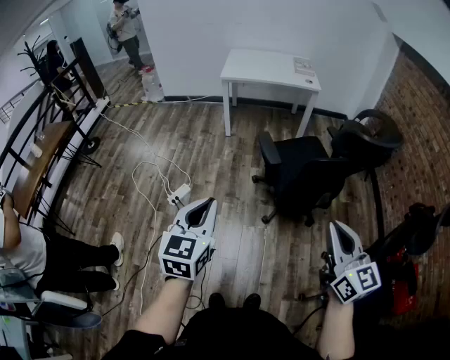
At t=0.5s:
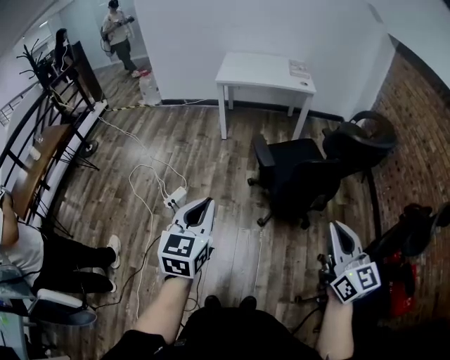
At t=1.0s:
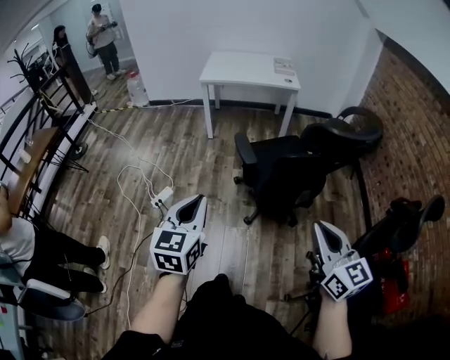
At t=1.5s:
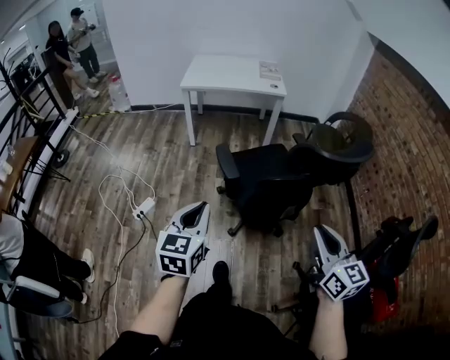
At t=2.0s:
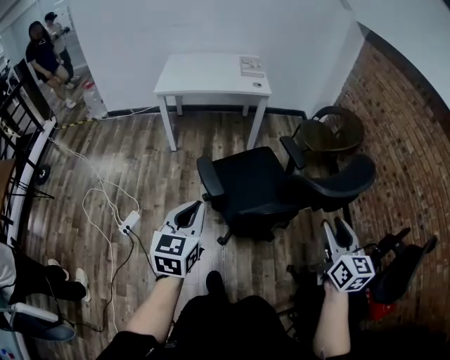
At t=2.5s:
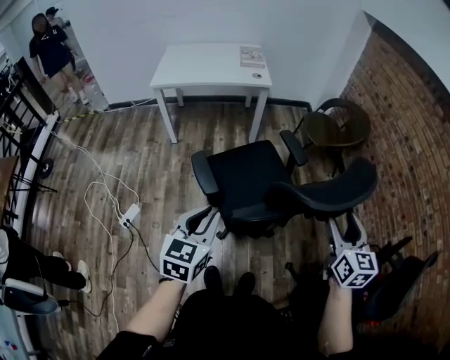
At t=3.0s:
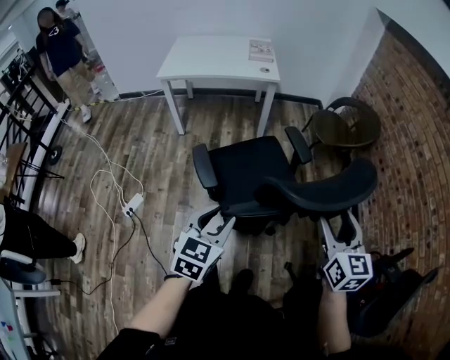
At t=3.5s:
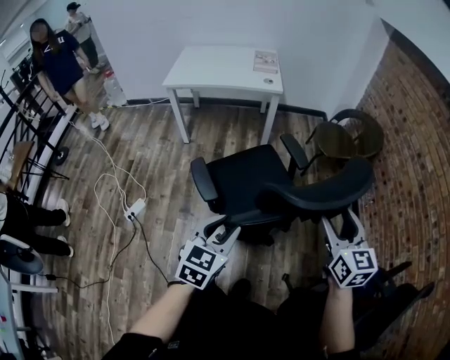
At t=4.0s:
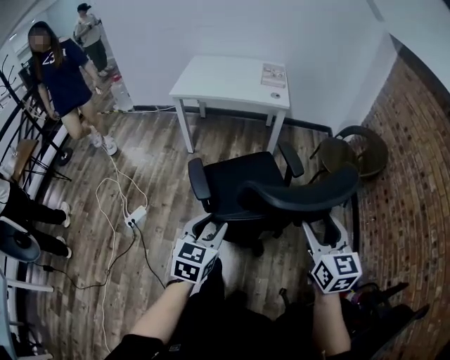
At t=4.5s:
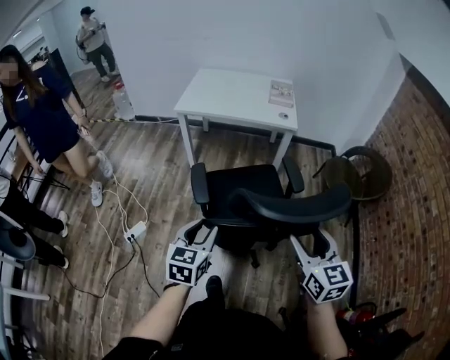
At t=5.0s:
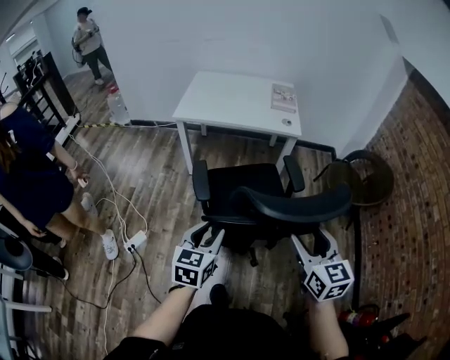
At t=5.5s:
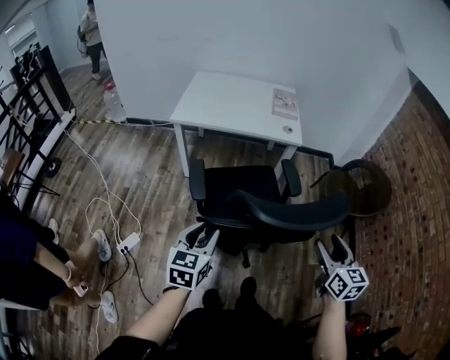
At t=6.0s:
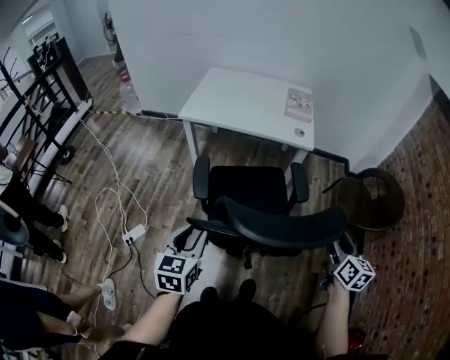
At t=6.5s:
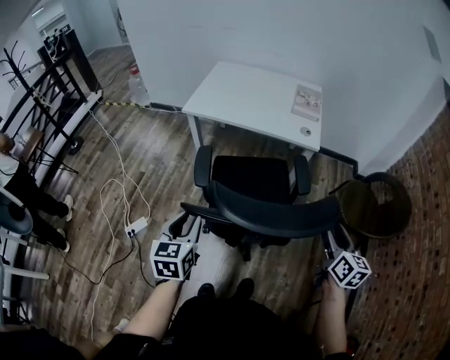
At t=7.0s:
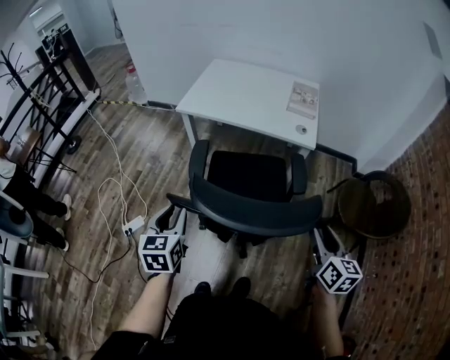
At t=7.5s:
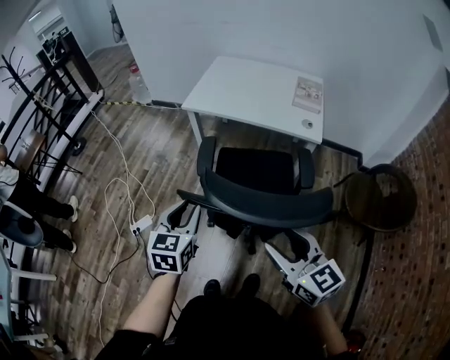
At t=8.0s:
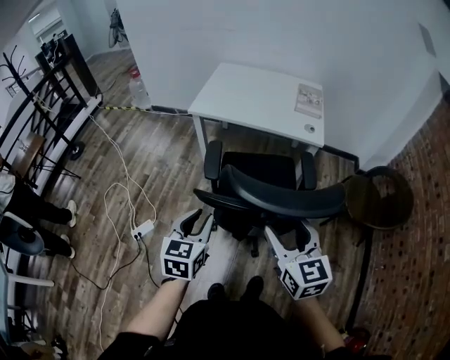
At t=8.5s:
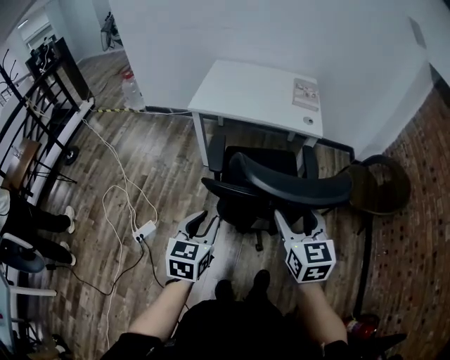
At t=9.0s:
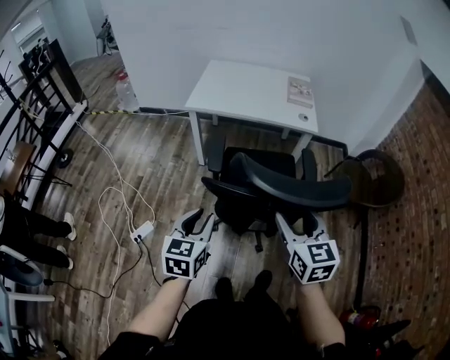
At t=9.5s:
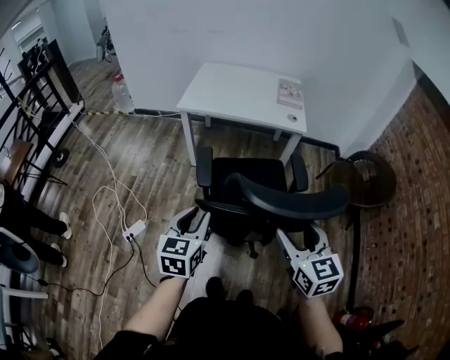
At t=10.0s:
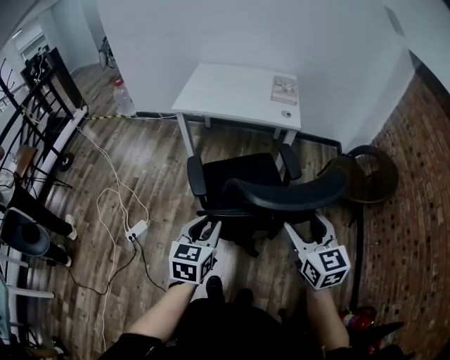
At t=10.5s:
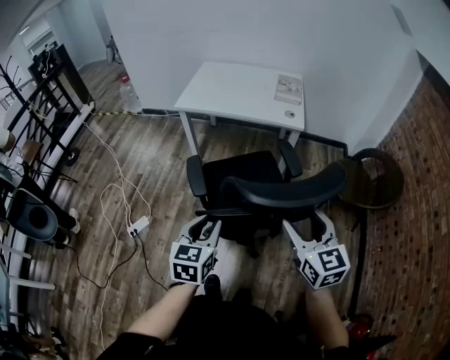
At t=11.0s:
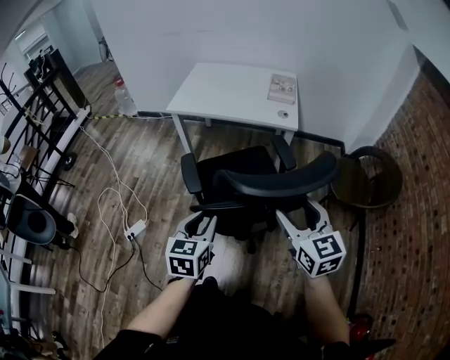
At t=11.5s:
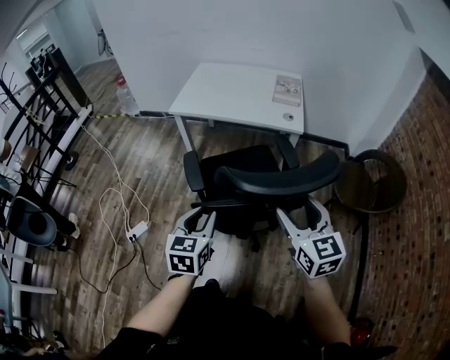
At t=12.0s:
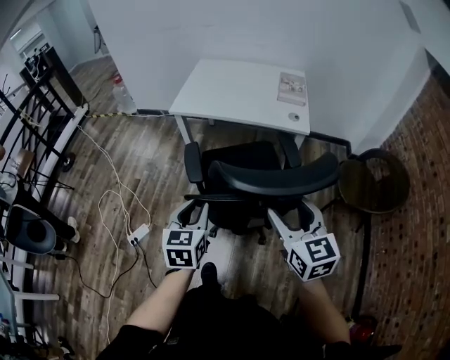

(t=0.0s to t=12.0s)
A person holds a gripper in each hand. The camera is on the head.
t=0.0s - t=2.0s: The left gripper goes some 30 cm forward and to the right; the right gripper travels to the right and forward by approximately 30 cm, turns by roughly 20 degrees, and opens up.
t=2.0s - t=4.0s: The left gripper travels to the right and forward by about 15 cm, and opens its fingers. Meanwhile the right gripper moves forward, roughly 15 cm.
t=4.0s - t=6.0s: The left gripper moves forward and to the left, approximately 25 cm. Meanwhile the right gripper moves forward, roughly 30 cm, and changes its angle by about 20 degrees.
t=6.0s - t=8.0s: The right gripper goes roughly 25 cm to the left, and rotates some 30 degrees.
t=8.0s - t=10.0s: The grippers both shift backward and to the right by roughly 15 cm.
t=10.0s - t=12.0s: The two grippers go about 15 cm forward.

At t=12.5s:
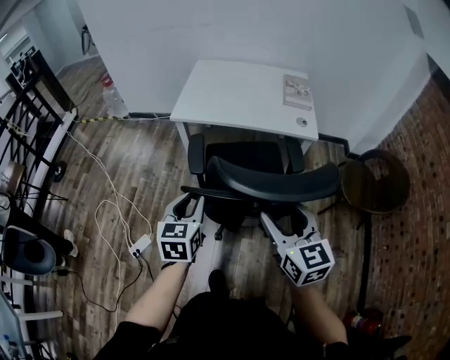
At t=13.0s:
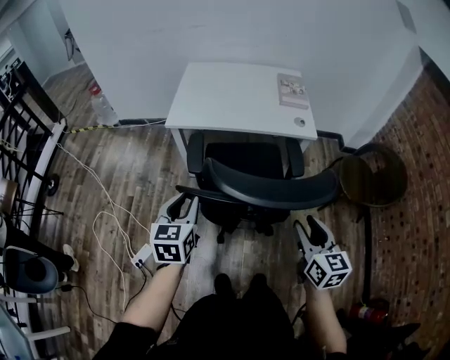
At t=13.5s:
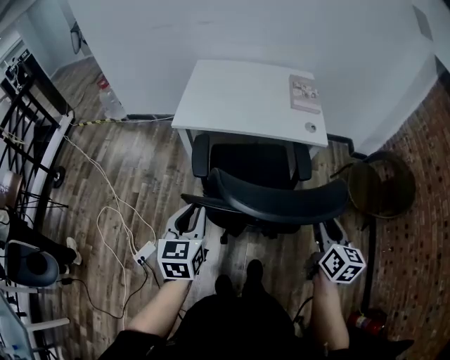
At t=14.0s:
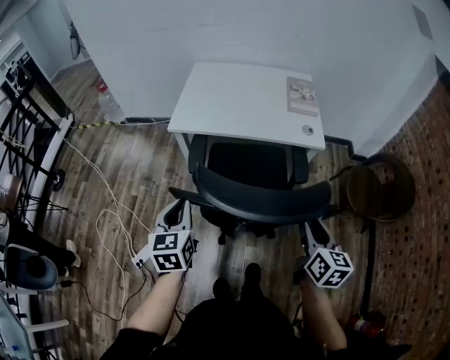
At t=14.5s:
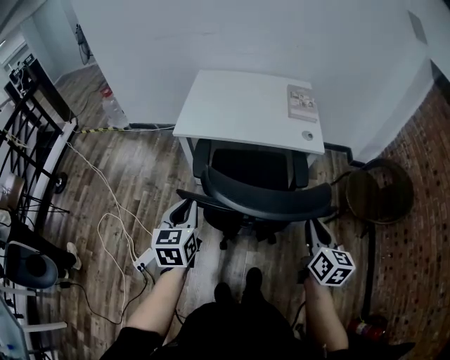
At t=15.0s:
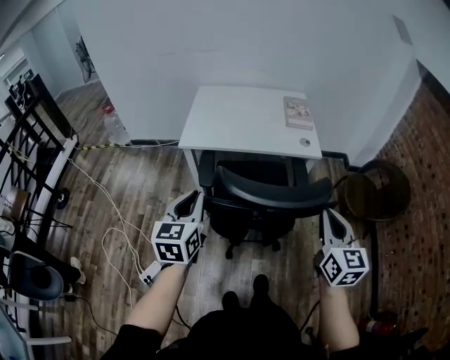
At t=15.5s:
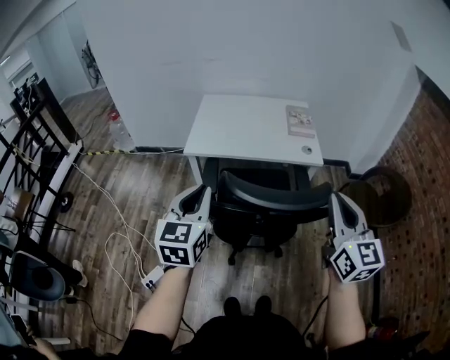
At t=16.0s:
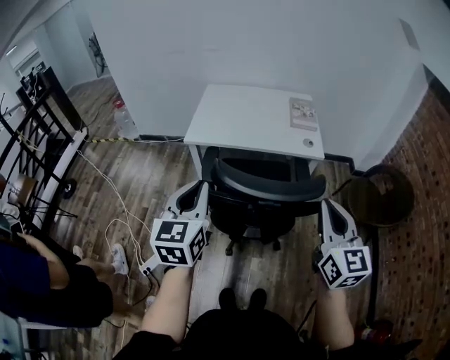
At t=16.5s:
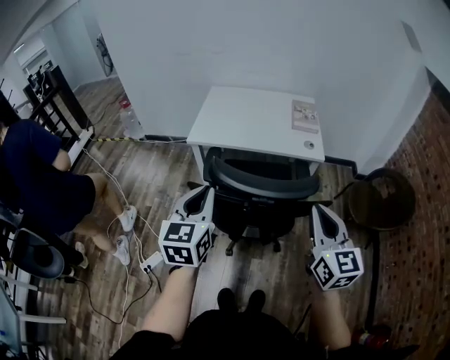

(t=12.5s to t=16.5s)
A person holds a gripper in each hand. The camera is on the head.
t=12.5s - t=14.5s: The left gripper travels forward by about 5 cm; the right gripper travels to the right, downward and forward by about 15 cm, changes its angle by about 30 degrees, and closes its fingers.
t=14.5s - t=16.5s: The right gripper heads upward and backward, covering roughly 15 cm, and changes its angle by about 30 degrees. Meanwhile the left gripper is displaced upward, backward and to the right by some 15 cm.

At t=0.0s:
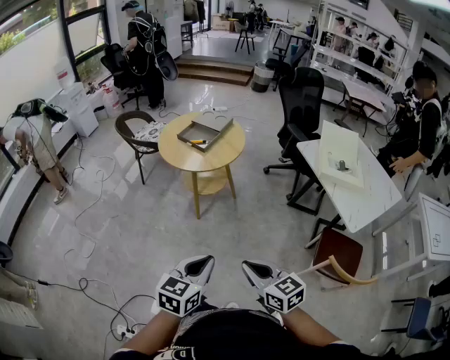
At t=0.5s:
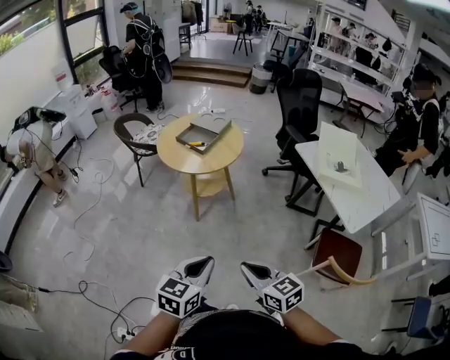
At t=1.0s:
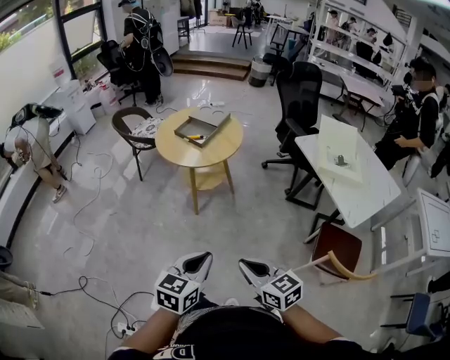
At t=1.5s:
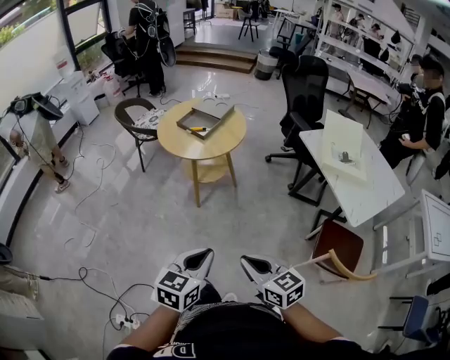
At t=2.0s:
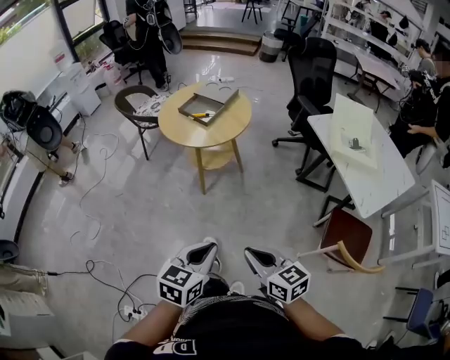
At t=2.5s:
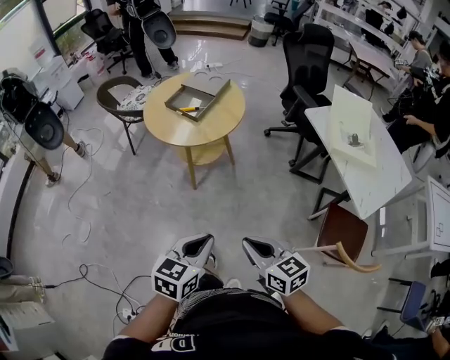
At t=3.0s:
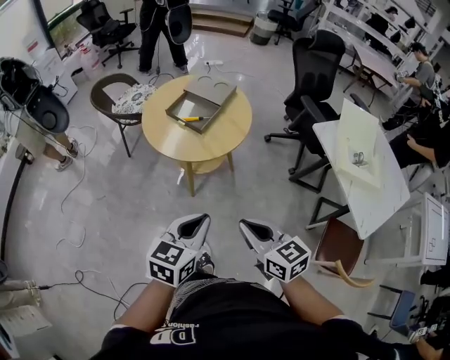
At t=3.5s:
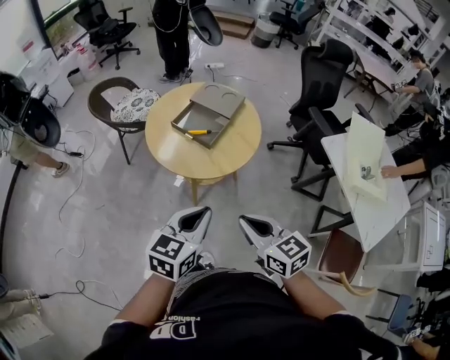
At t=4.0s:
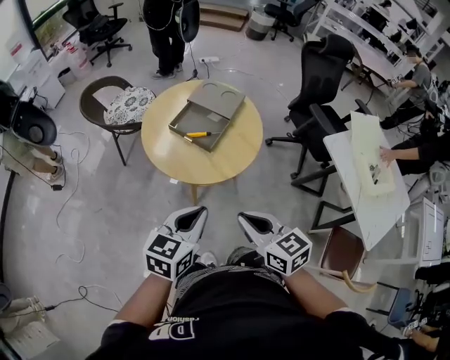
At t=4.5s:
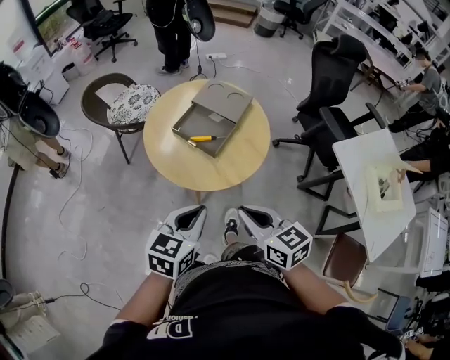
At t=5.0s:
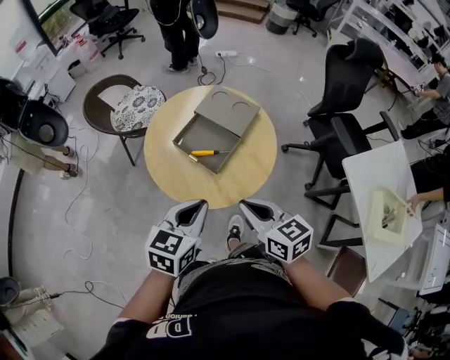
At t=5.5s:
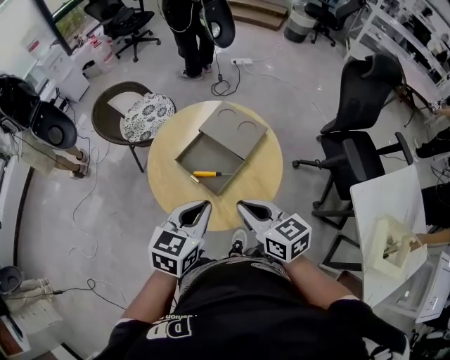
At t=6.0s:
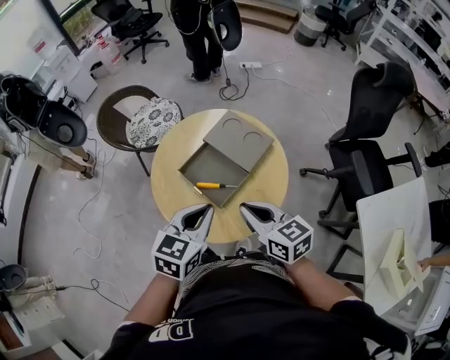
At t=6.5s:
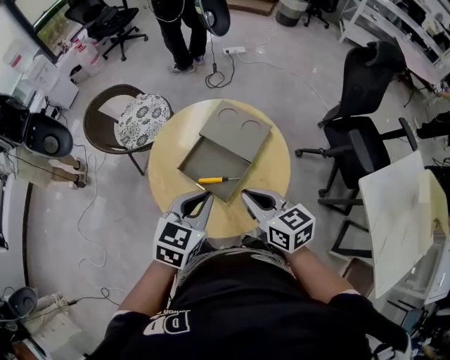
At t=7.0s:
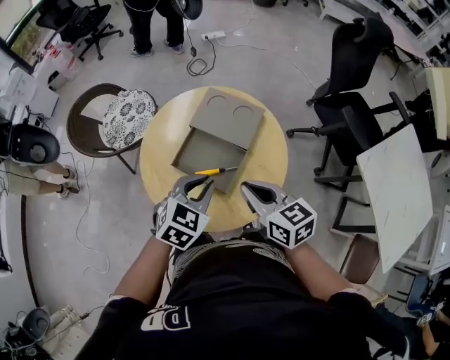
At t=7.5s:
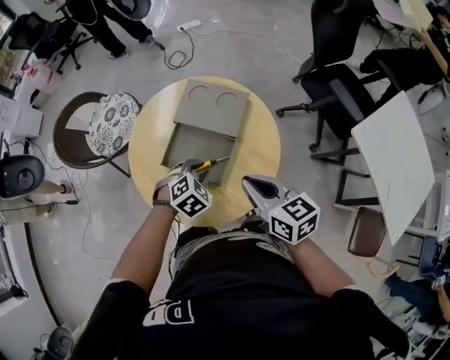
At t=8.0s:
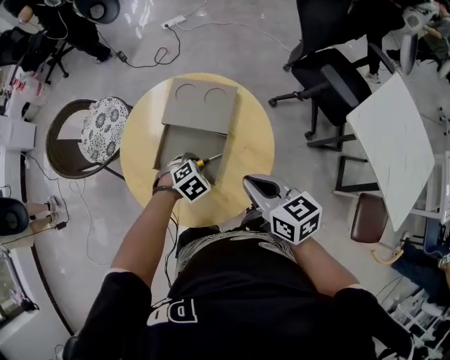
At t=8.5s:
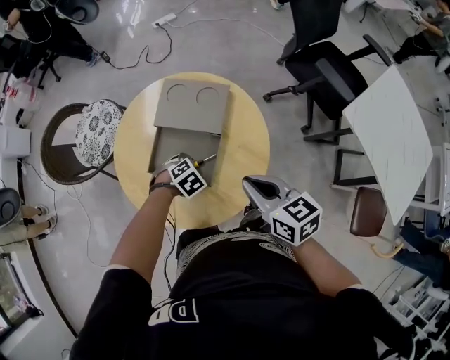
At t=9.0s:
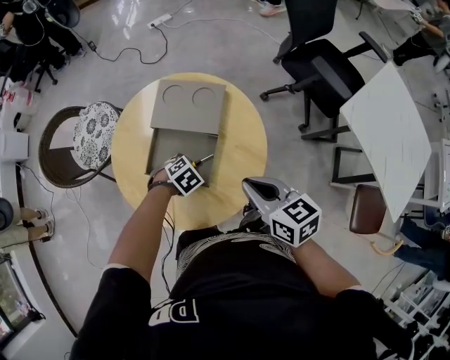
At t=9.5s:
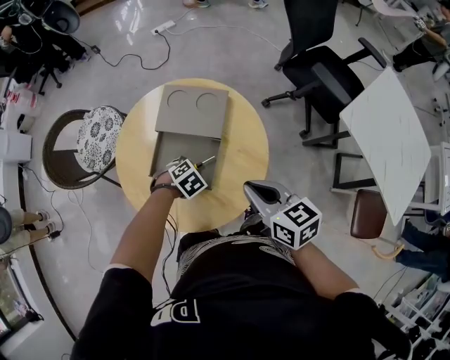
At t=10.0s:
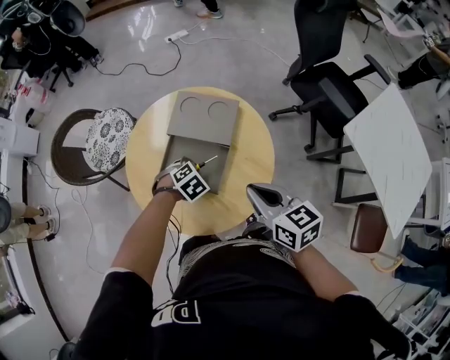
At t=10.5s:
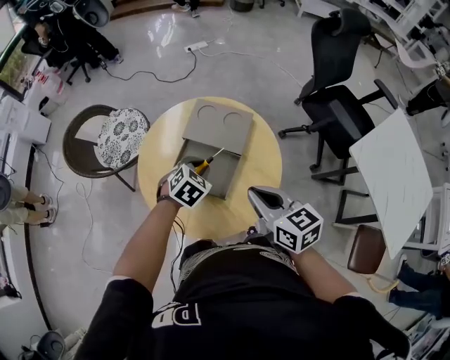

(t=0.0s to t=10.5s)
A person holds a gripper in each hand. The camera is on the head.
t=0.0s - t=2.0s: The grippers move only a little.
t=2.0s - t=4.0s: Both grippers are carried forward, approximately 40 cm.
t=4.0s - t=6.5s: The two grippers go approximately 30 cm forward.
t=6.5s - t=8.5s: The left gripper is displaced downward by some 30 cm, tilts its fingers about 40 degrees downward, and opens up; the right gripper changes place by approximately 5 cm, and changes its angle by approximately 20 degrees.
t=8.5s - t=10.5s: The left gripper heads upward, covering roughly 15 cm, and swivels some 30 degrees; the right gripper shifts by approximately 5 cm.
